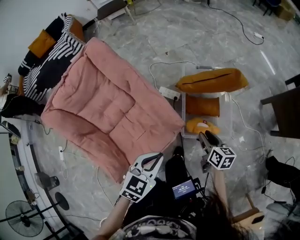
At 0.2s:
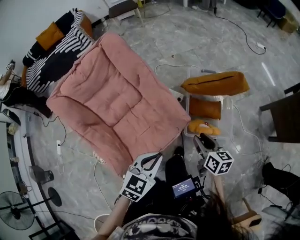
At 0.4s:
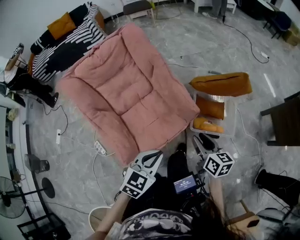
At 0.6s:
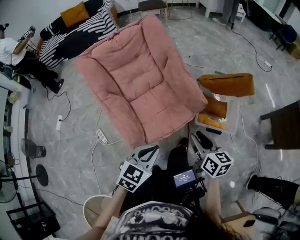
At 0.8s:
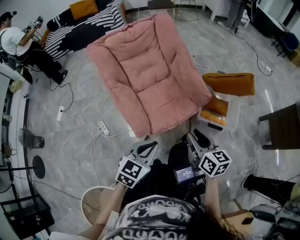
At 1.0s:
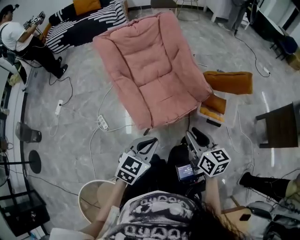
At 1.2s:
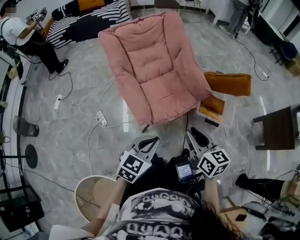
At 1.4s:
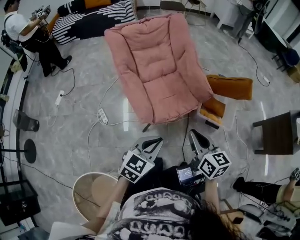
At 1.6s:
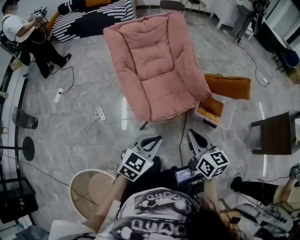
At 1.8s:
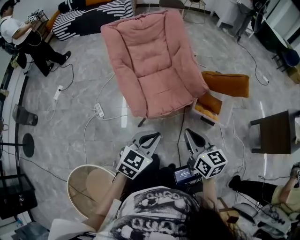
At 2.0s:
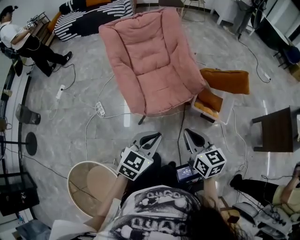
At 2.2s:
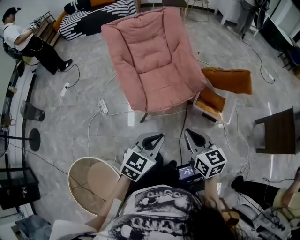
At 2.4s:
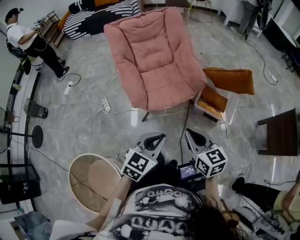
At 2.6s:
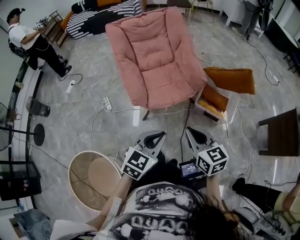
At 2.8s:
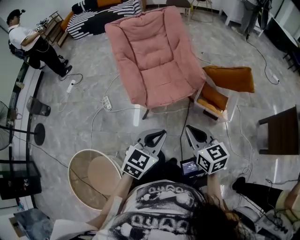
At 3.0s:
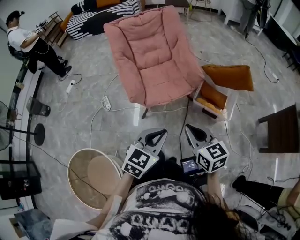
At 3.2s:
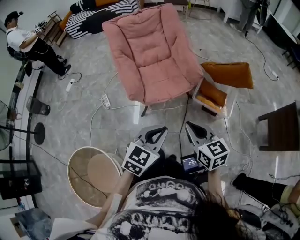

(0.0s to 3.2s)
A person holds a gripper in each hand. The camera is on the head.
0.0s - 1.6s: The right gripper moves backward, to the left and upward, about 50 cm, changes its angle by roughly 40 degrees, and closes up. The left gripper goes roughly 40 cm backward and to the left, and changes its angle by some 20 degrees.
1.6s - 3.2s: The grippers both shift to the right and backward by about 15 cm.

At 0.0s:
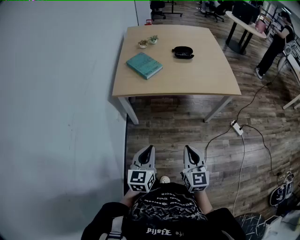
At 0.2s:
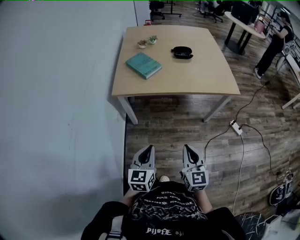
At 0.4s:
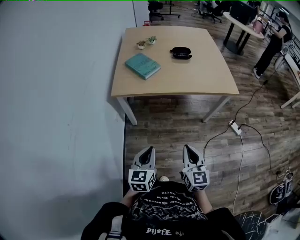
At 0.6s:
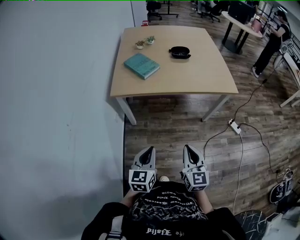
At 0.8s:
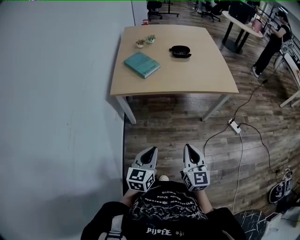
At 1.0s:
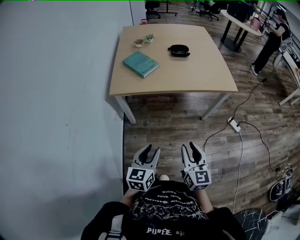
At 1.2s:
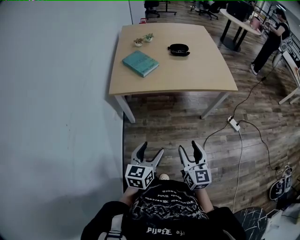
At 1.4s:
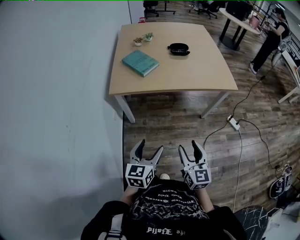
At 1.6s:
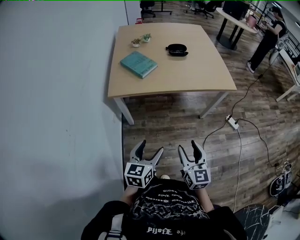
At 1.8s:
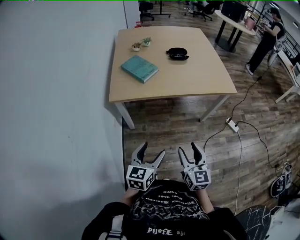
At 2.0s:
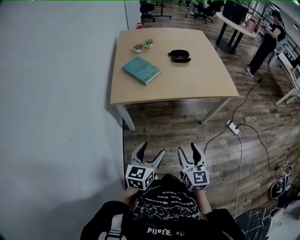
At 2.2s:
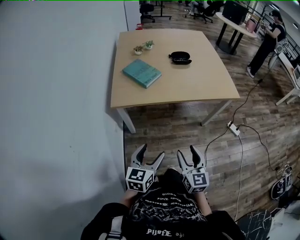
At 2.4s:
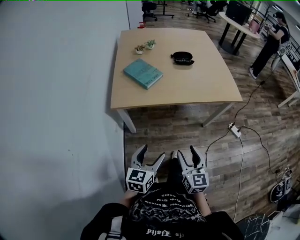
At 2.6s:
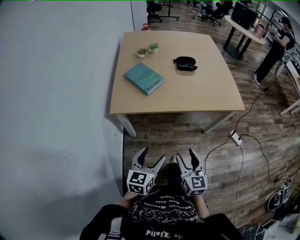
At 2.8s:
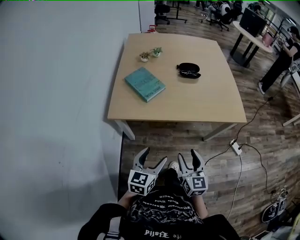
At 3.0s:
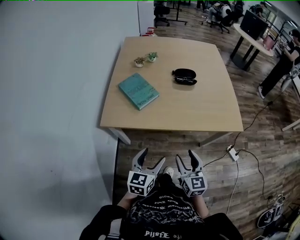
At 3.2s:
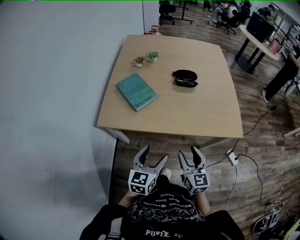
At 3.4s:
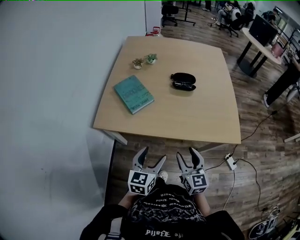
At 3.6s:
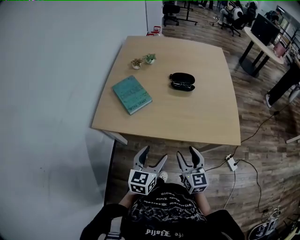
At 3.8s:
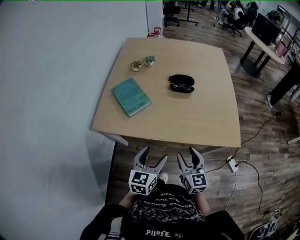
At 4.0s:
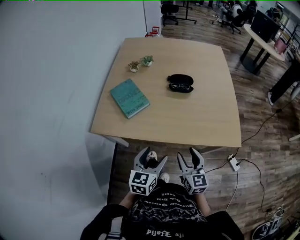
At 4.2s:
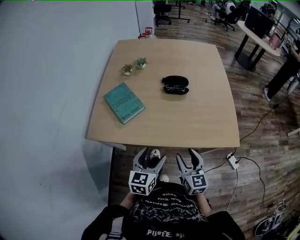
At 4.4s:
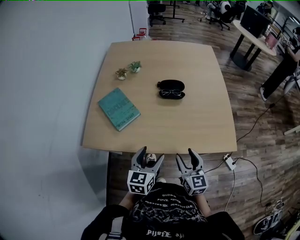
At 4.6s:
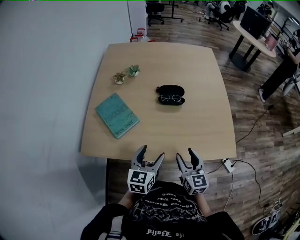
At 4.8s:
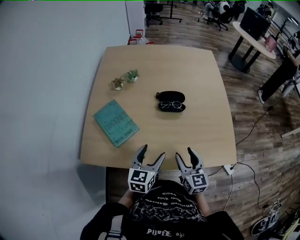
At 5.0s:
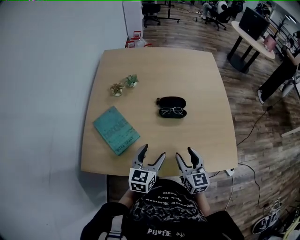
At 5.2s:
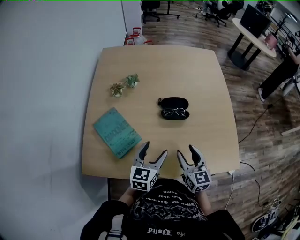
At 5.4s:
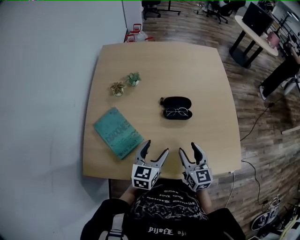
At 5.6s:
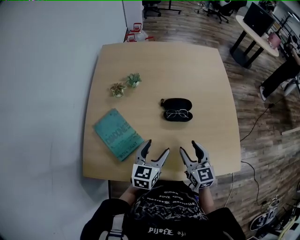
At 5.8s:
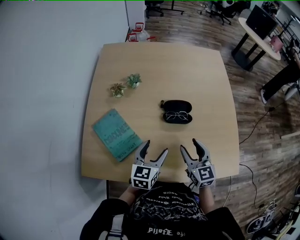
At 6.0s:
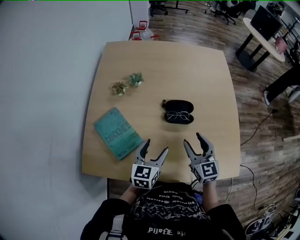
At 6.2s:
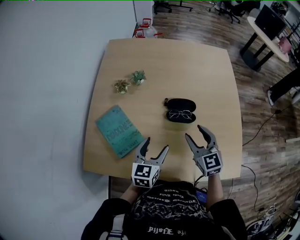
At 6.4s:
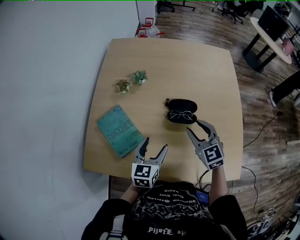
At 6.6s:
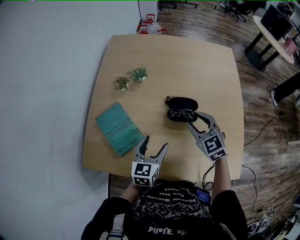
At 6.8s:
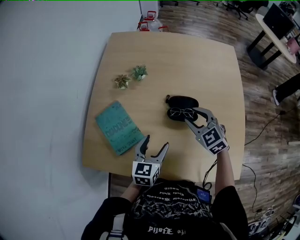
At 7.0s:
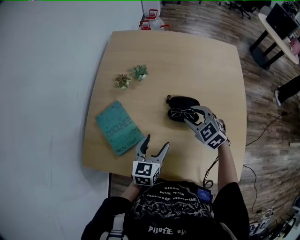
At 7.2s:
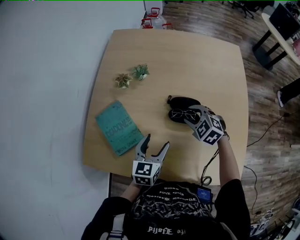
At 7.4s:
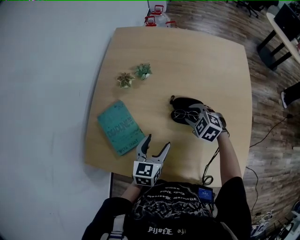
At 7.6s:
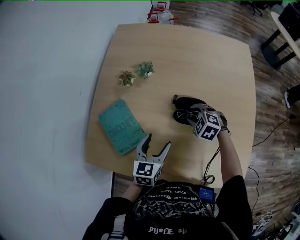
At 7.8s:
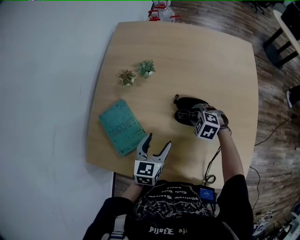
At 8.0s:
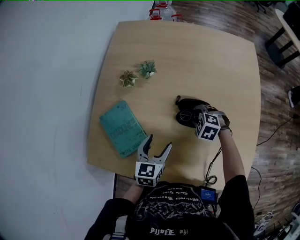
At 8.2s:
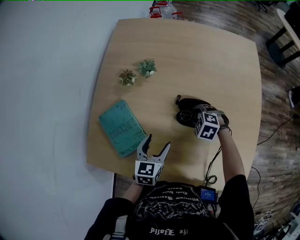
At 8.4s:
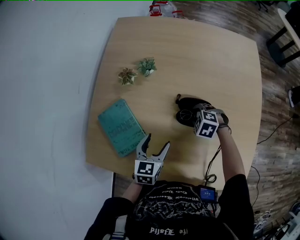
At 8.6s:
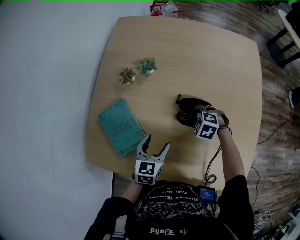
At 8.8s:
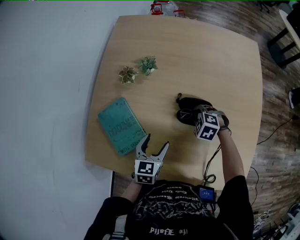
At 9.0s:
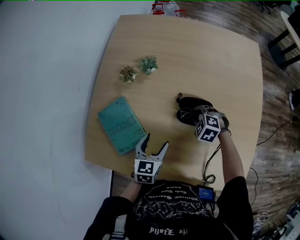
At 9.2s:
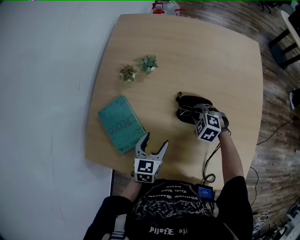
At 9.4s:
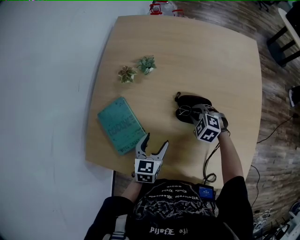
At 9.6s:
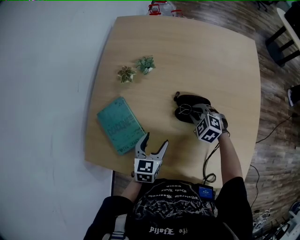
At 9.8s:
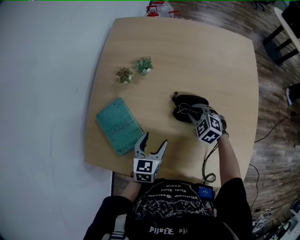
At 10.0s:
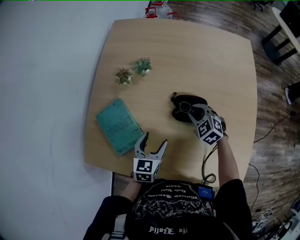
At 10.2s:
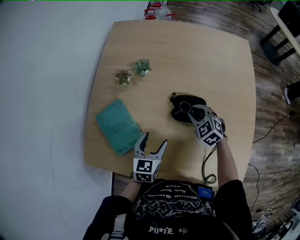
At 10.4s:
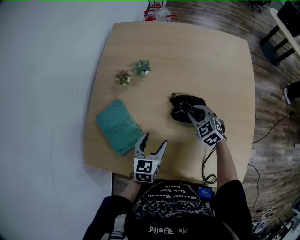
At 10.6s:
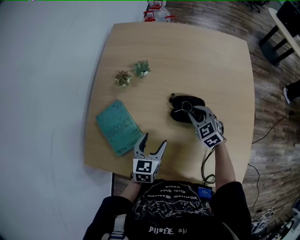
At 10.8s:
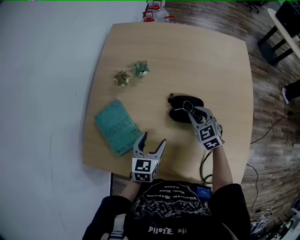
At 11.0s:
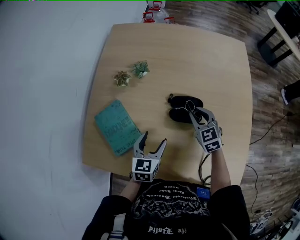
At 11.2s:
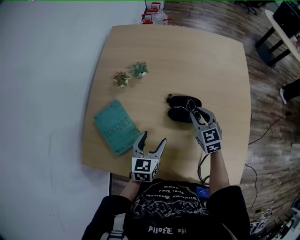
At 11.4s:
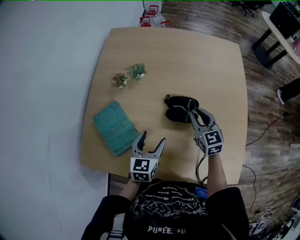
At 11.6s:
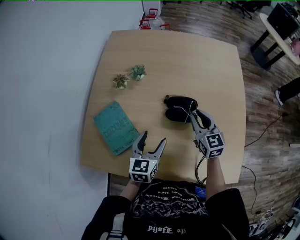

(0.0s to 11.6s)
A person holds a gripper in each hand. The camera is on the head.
0.0s - 1.4s: The right gripper opens its fingers, while the left gripper opens.
1.4s - 2.8s: Both grippers move forward, about 20 cm.
2.8s - 4.4s: The two grippers go about 25 cm forward and to the right.
4.4s - 5.8s: The grippers both shift forward by roughly 25 cm.
5.8s - 7.2s: The right gripper shifts some 15 cm forward and downward, and angles its fingers downward, by roughly 30 degrees.
7.2s - 8.8s: The left gripper goes some 5 cm downward. Meanwhile the right gripper travels downward by about 10 cm, and changes its angle by some 20 degrees.
8.8s - 10.2s: The right gripper moves upward, some 5 cm, and swivels roughly 30 degrees.
10.2s - 11.6s: The right gripper is displaced upward by approximately 10 cm, and turns by some 40 degrees; the left gripper shifts roughly 5 cm upward.

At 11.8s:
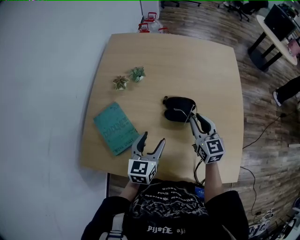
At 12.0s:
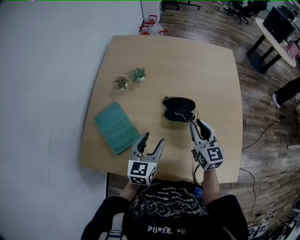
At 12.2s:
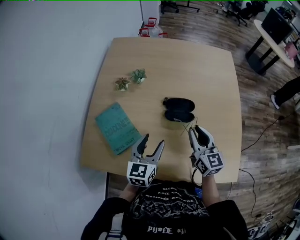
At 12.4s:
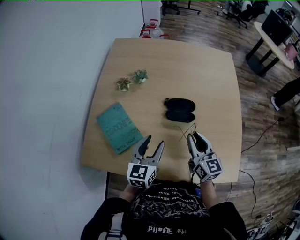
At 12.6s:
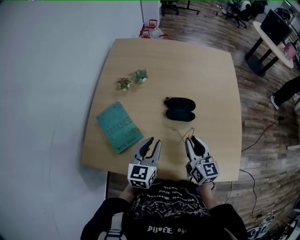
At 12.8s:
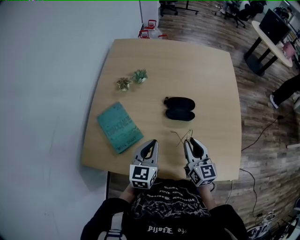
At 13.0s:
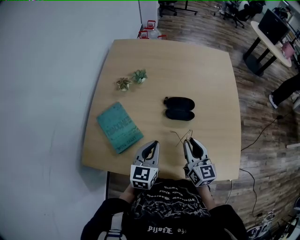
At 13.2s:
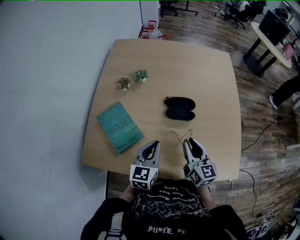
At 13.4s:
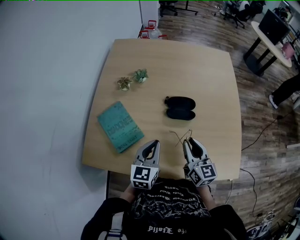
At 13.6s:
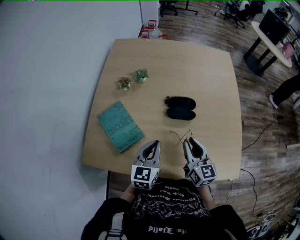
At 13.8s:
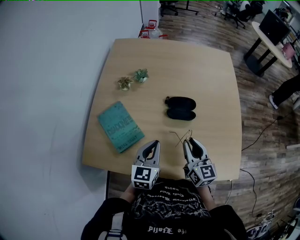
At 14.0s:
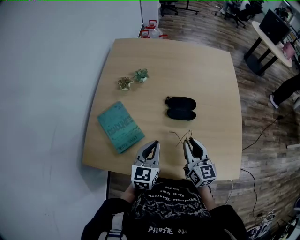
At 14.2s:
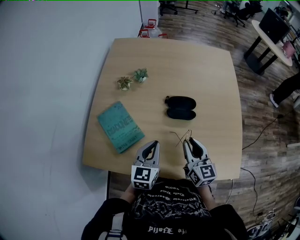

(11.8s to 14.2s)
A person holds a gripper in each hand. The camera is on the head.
11.8s - 13.0s: The left gripper shifts roughly 5 cm backward, and closes its fingers. The right gripper goes approximately 15 cm backward.
13.0s - 14.2s: The two grippers keep their place.

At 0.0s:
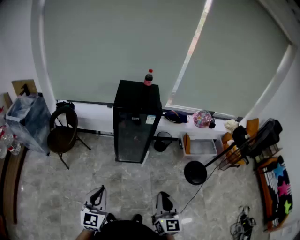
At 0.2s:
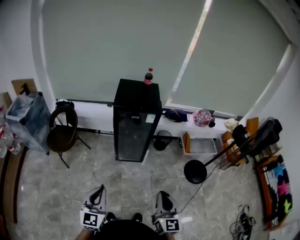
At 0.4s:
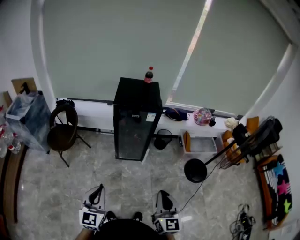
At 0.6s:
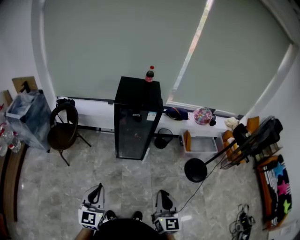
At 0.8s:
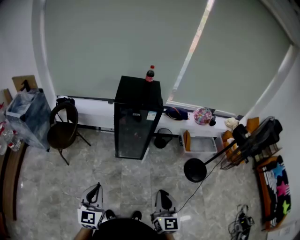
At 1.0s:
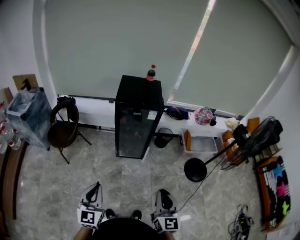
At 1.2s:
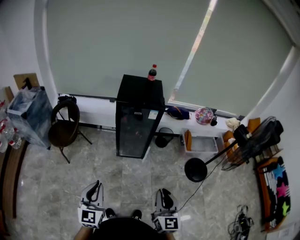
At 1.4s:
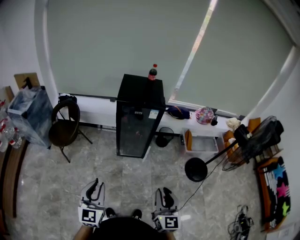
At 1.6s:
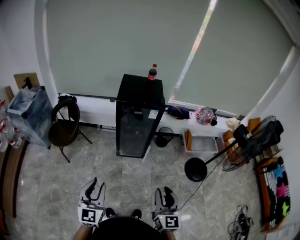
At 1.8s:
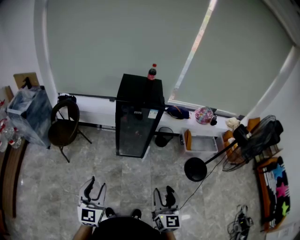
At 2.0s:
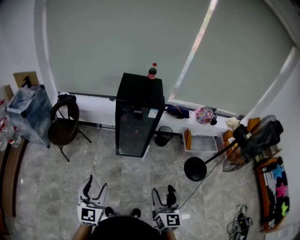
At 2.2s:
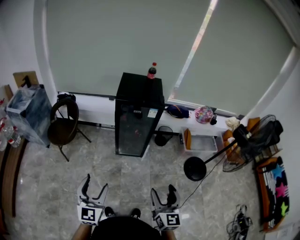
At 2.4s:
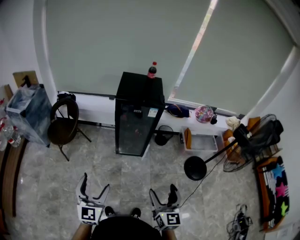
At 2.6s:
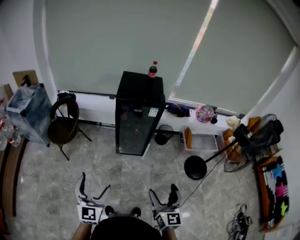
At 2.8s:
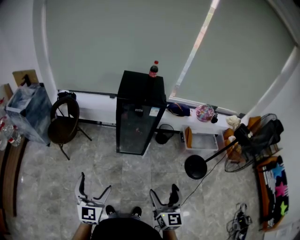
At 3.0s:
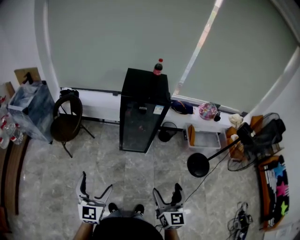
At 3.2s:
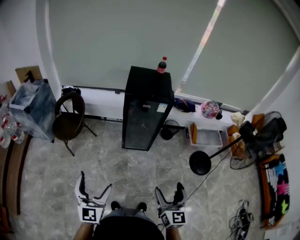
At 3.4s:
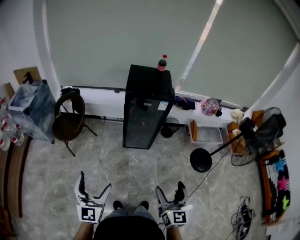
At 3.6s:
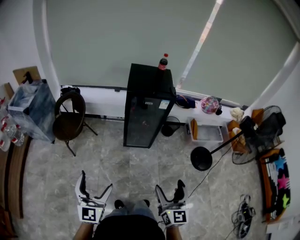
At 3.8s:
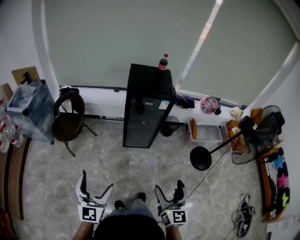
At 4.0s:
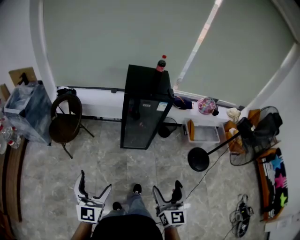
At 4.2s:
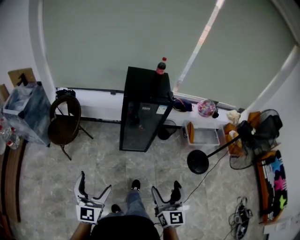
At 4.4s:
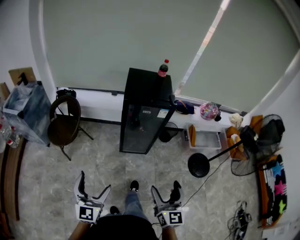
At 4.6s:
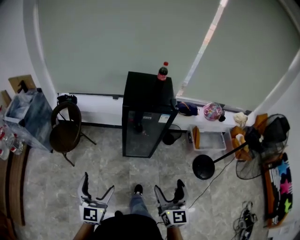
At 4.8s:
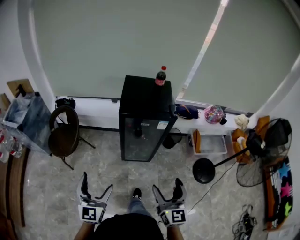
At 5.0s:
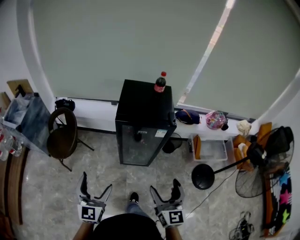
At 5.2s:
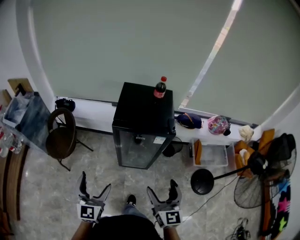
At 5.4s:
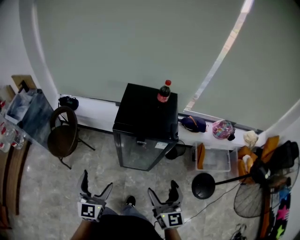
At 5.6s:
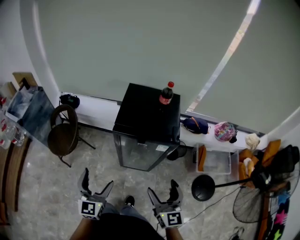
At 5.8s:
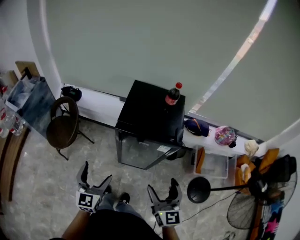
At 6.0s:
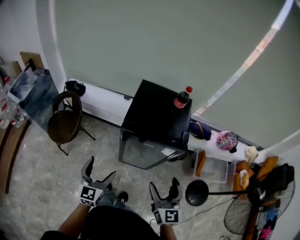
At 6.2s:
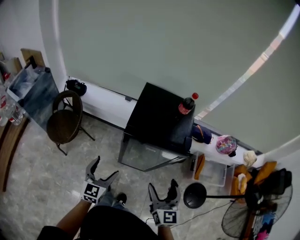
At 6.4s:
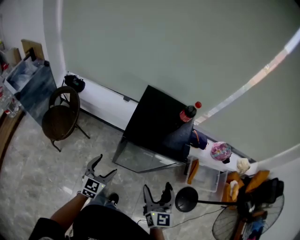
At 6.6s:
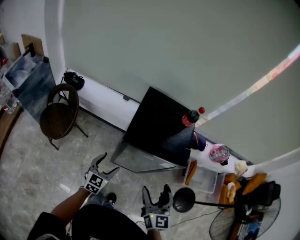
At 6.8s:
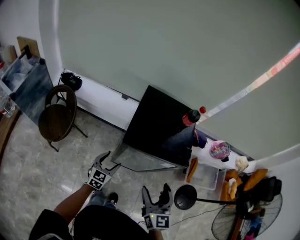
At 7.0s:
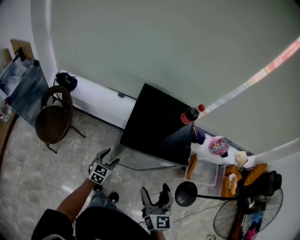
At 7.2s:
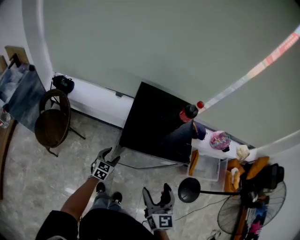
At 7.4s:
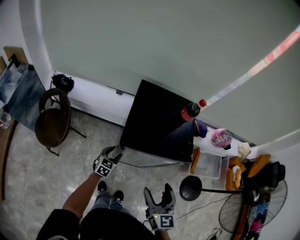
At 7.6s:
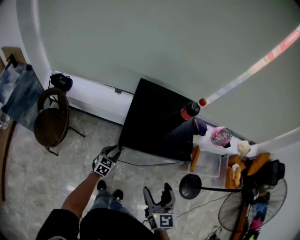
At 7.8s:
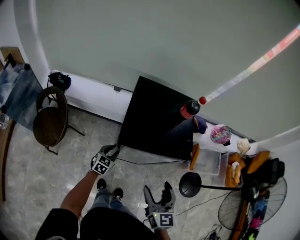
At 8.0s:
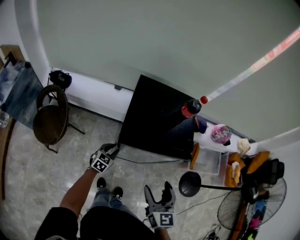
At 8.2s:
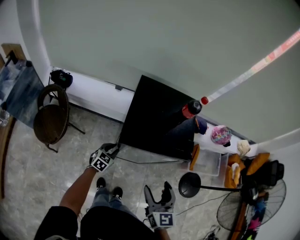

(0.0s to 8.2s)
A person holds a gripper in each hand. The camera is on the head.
0.0s - 1.6s: The grippers stay close to where they were, moving slightly.
1.6s - 3.2s: The left gripper travels to the left by some 5 cm, and opens up. The right gripper opens up.
3.2s - 5.0s: The grippers both shift forward by approximately 25 cm.
5.0s - 6.6s: The right gripper shifts about 20 cm forward. The left gripper is displaced forward and downward by some 30 cm.
6.6s - 8.2s: The left gripper heads downward and forward, covering roughly 15 cm, turns by approximately 20 degrees, and closes up.
